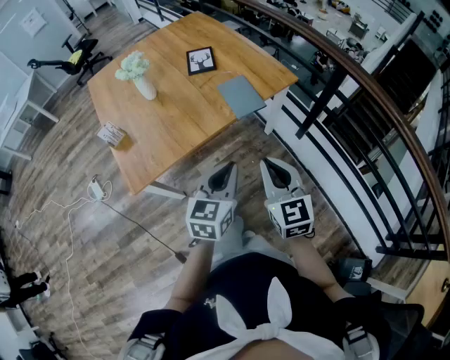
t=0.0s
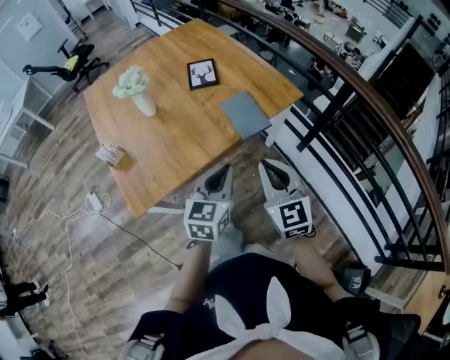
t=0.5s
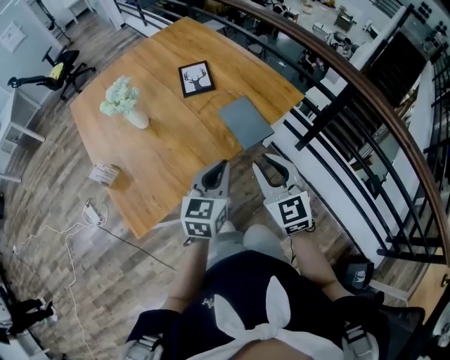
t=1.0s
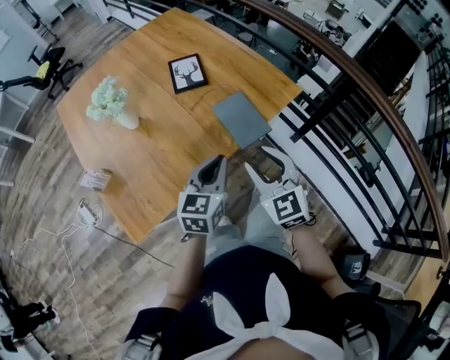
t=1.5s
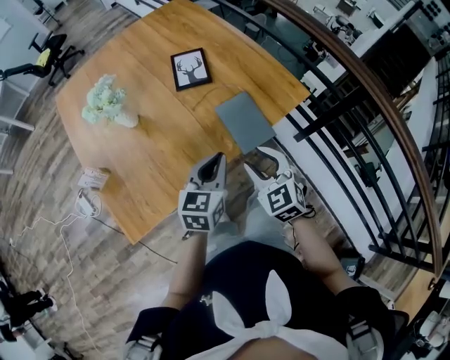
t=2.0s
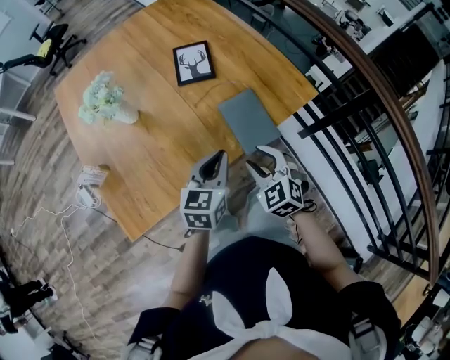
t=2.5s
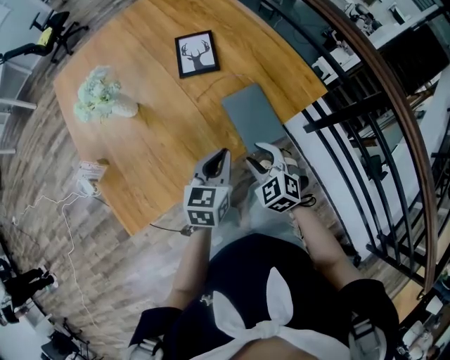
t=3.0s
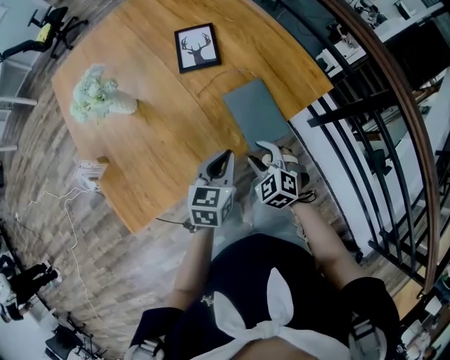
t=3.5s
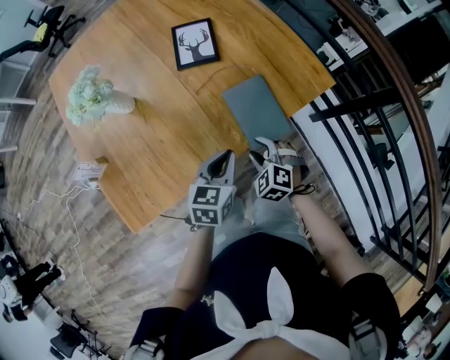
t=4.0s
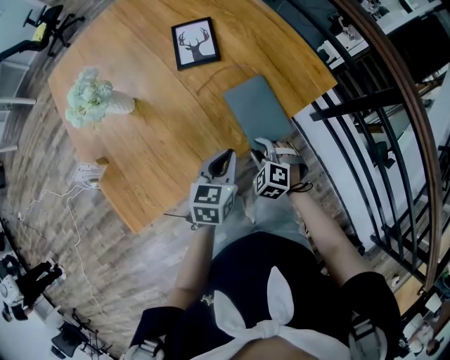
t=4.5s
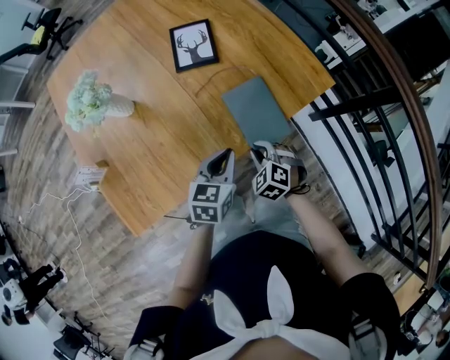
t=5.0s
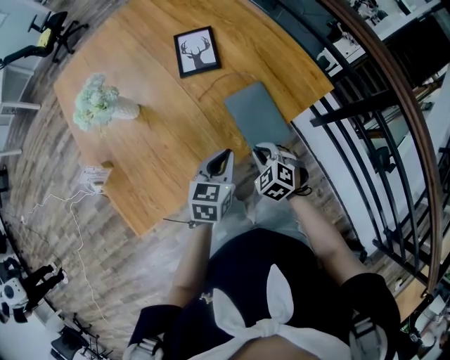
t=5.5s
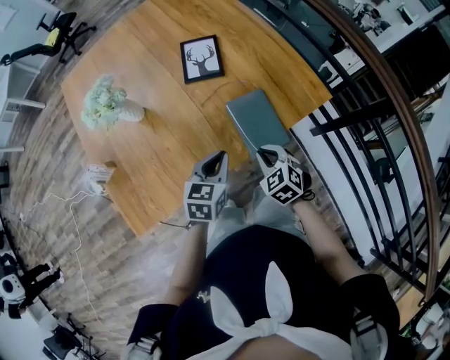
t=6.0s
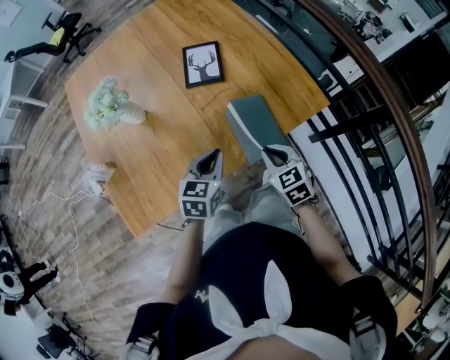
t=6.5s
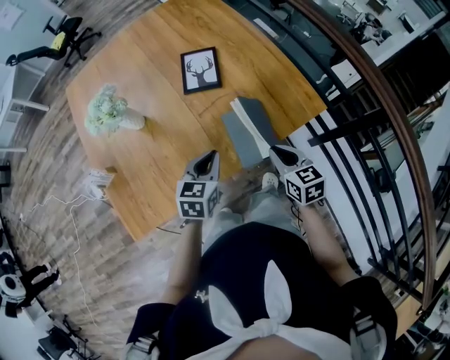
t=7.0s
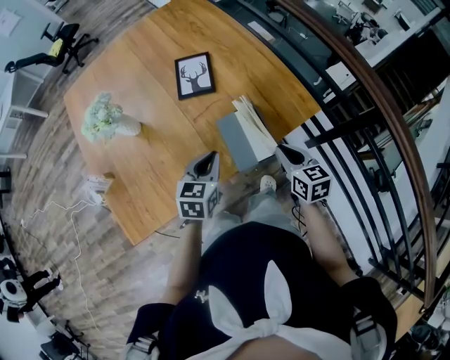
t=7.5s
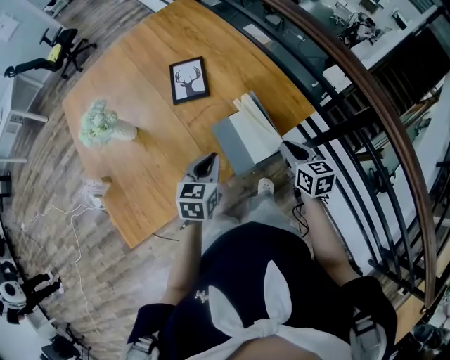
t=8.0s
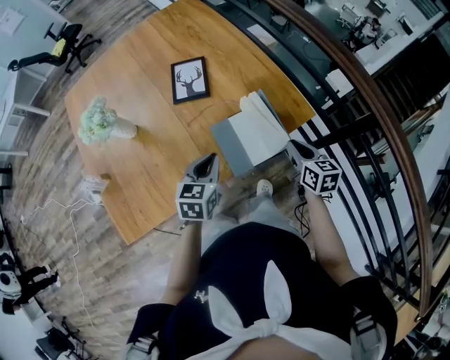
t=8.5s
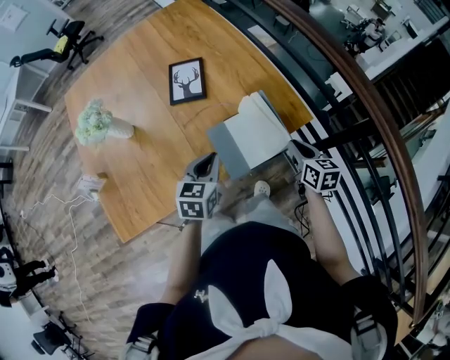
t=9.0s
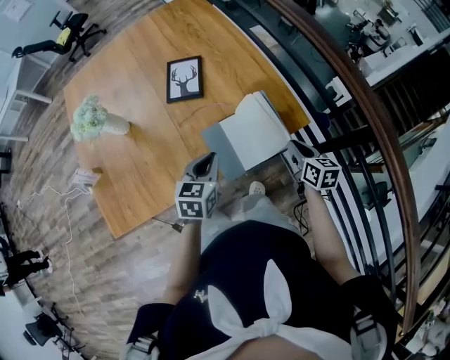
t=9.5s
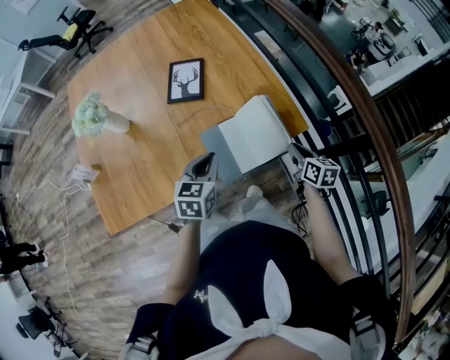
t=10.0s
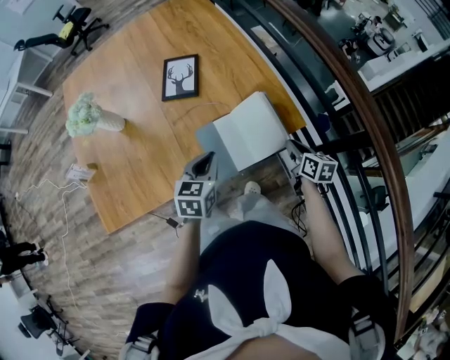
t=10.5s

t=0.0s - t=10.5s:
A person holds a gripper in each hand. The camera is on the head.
t=0.0s - t=2.0s: Both grippers travel together forward, roughly 25 cm. The right gripper turns by roughly 30 degrees, and opens.
t=2.0s - t=4.0s: The left gripper moves downward, some 10 cm; the right gripper shifts about 15 cm downward, and changes its angle by approximately 30 degrees.
t=4.0s - t=6.5s: The right gripper goes roughly 10 cm upward, rotates about 30 degrees, and closes its fingers, while the left gripper ends up approximately 5 cm from where it was.
t=6.5s - t=8.5s: The left gripper moves to the right, approximately 5 cm. The right gripper goes approximately 15 cm to the right, and swivels about 30 degrees.
t=8.5s - t=10.5s: The left gripper heads to the right, covering approximately 5 cm; the right gripper is displaced to the right and downward by about 10 cm.

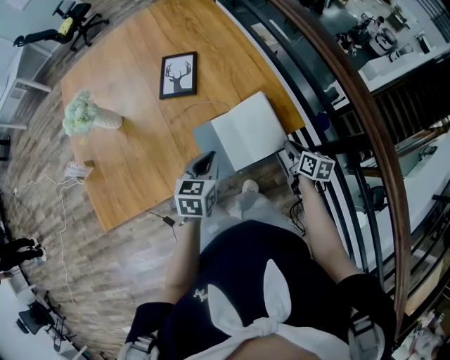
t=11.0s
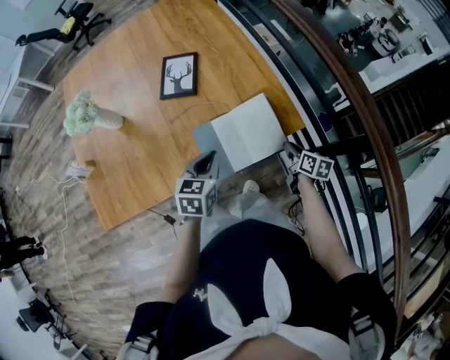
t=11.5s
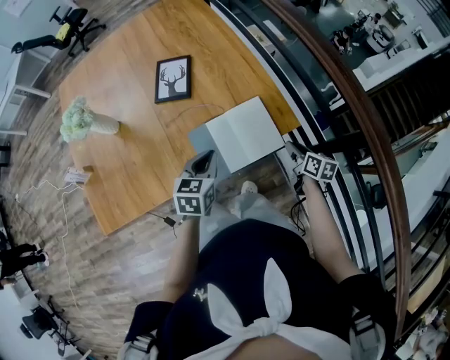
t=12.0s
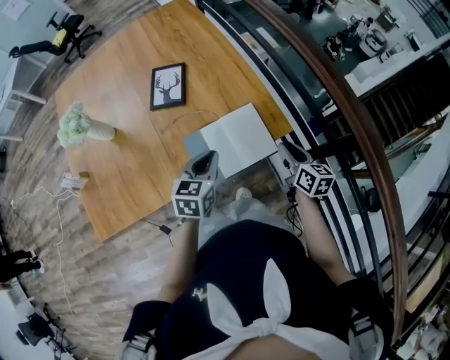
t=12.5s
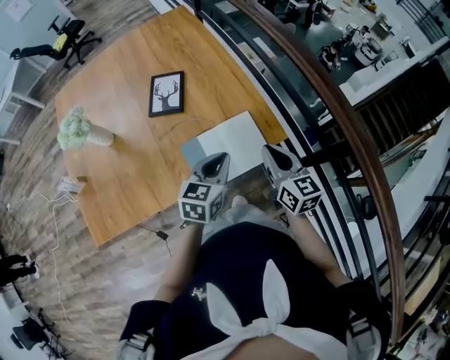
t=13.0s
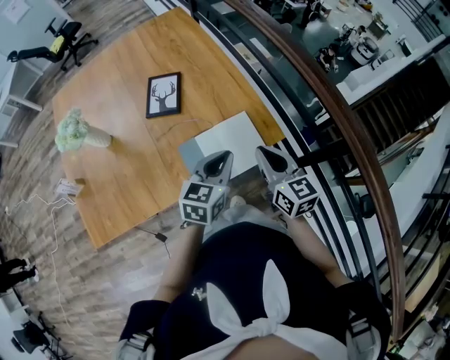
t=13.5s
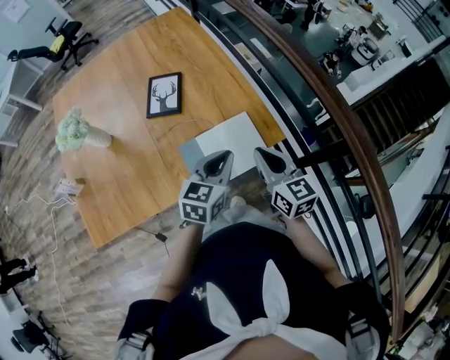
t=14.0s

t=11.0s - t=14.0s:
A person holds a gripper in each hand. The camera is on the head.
t=11.0s - t=12.5s: The left gripper changes place by approximately 5 cm, while the right gripper travels upward by approximately 10 cm.
t=12.5s - t=14.0s: The left gripper goes approximately 10 cm to the right and upward; the right gripper goes about 15 cm upward and to the left, rotates roughly 20 degrees, and closes its fingers.

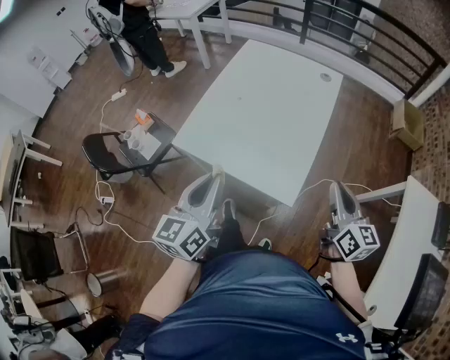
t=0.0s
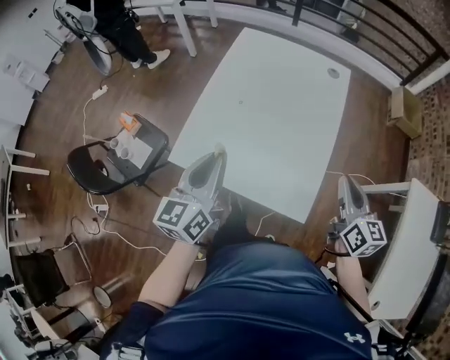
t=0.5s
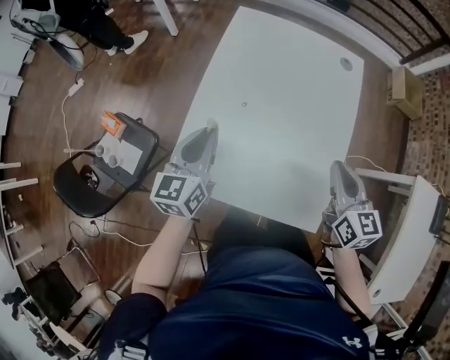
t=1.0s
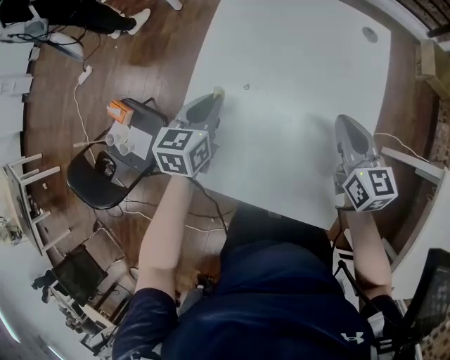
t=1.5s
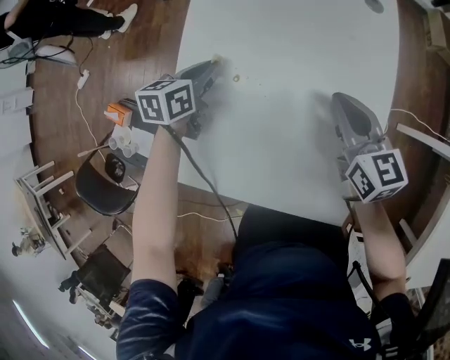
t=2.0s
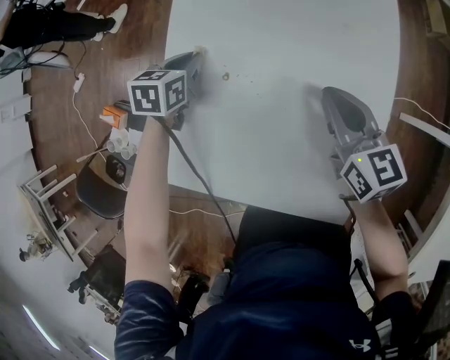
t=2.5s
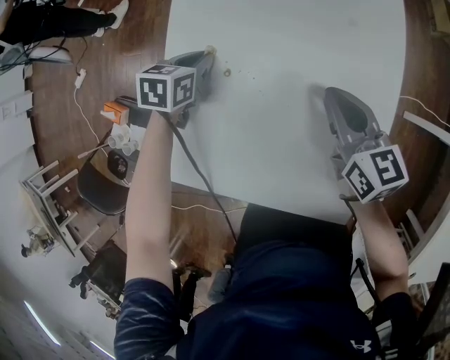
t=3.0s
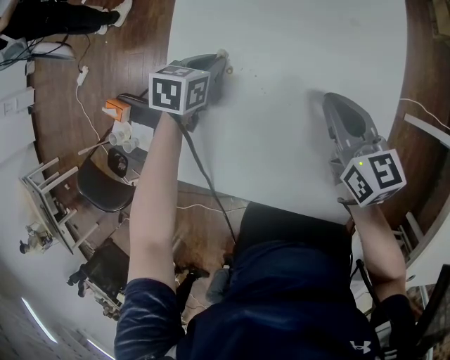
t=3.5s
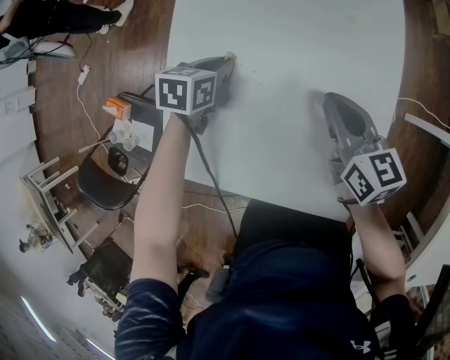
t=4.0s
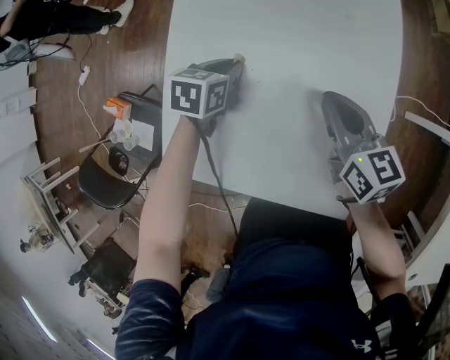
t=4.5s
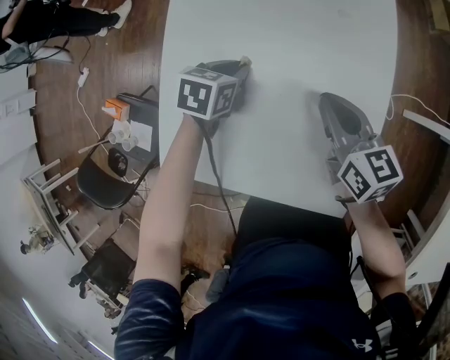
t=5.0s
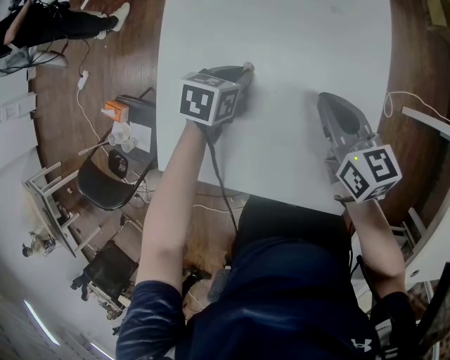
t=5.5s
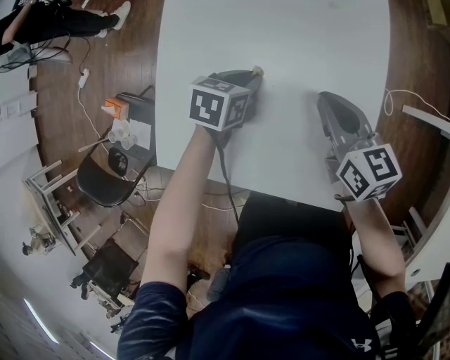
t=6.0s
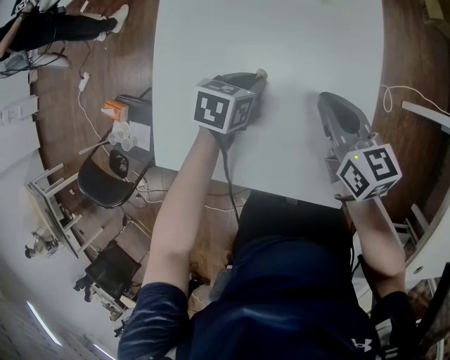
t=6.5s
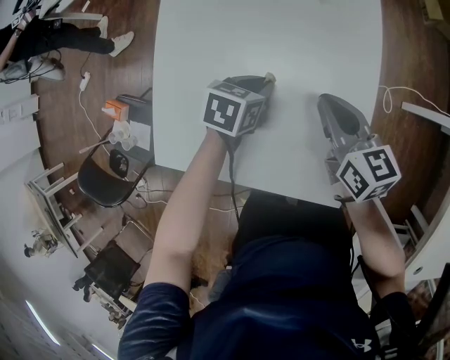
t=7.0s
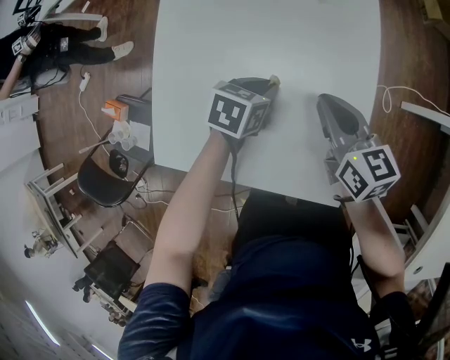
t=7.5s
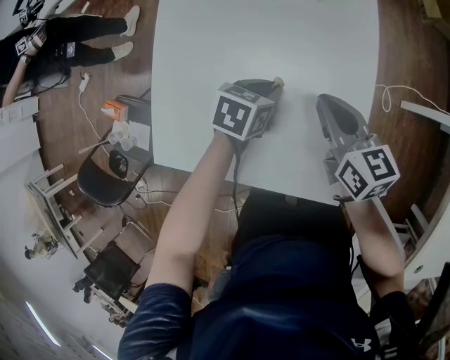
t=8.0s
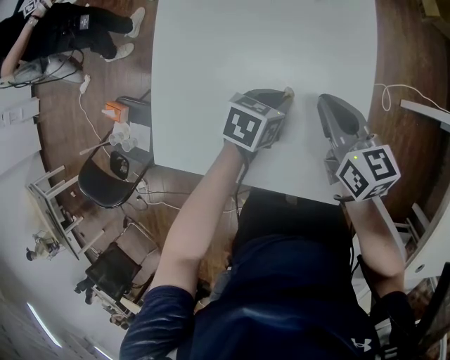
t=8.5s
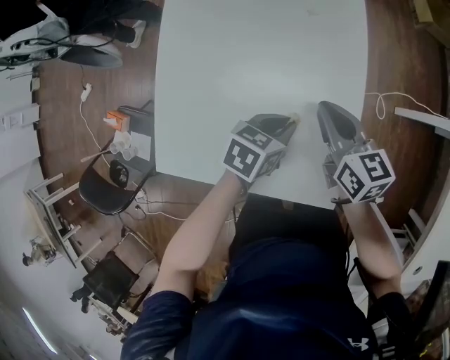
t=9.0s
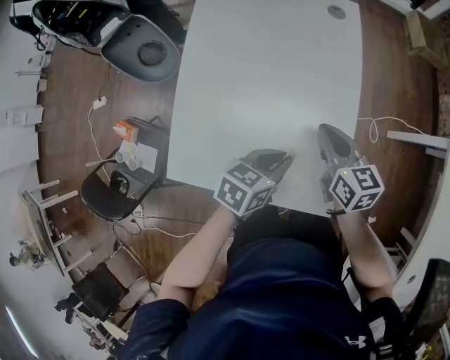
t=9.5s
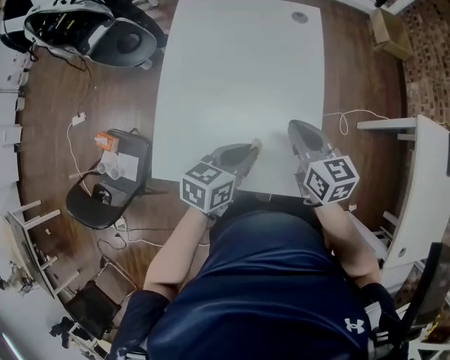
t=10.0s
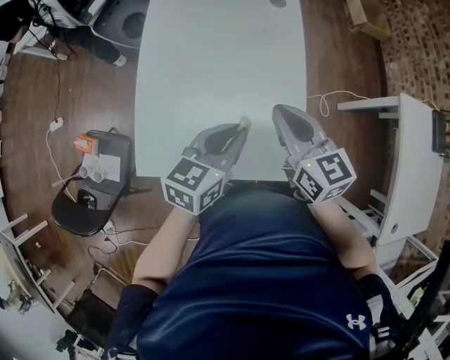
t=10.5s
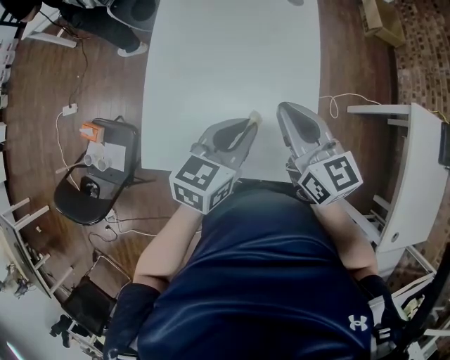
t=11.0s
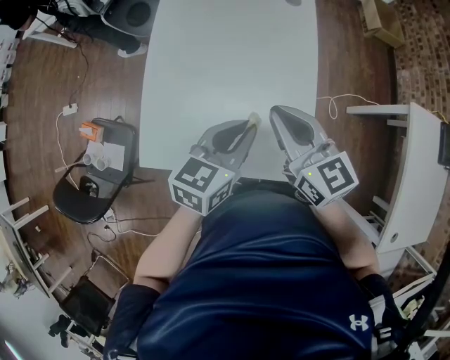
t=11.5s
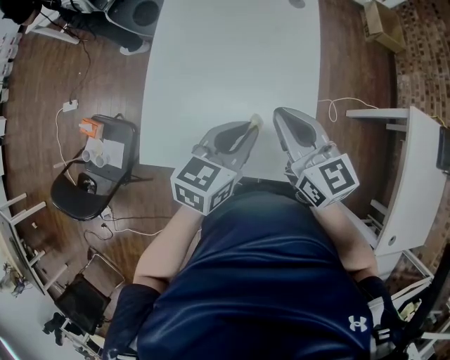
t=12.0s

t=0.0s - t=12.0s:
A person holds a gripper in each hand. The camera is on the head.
t=0.0s - t=2.0s: The left gripper travels forward and downward by roughly 50 cm, and points its fingers roughly 30 degrees further downward; the right gripper is displaced forward, downward and to the left by about 40 cm.
t=2.0s - t=4.0s: The left gripper moves some 5 cm.
t=4.0s - t=6.0s: The left gripper moves to the right and backward, about 10 cm.
t=6.0s - t=8.0s: The left gripper moves to the right, about 5 cm.
t=8.0s - t=10.0s: The right gripper shifts roughly 10 cm upward; the left gripper heads upward and backward, covering approximately 20 cm, and swivels roughly 20 degrees.
t=10.0s - t=12.0s: The left gripper ends up approximately 5 cm from where it was; the right gripper goes about 5 cm upward.

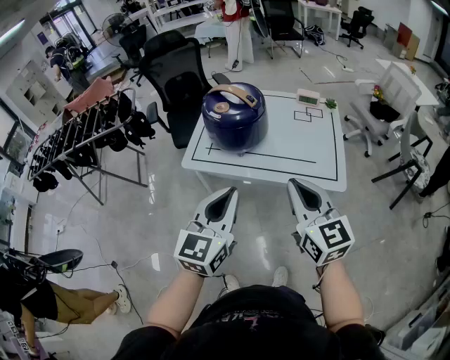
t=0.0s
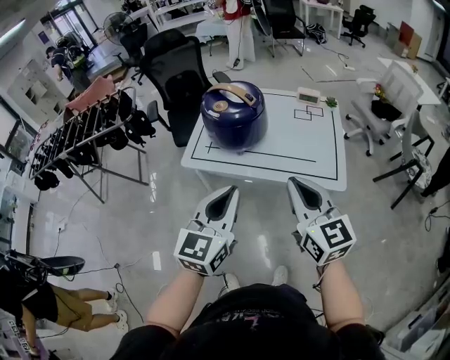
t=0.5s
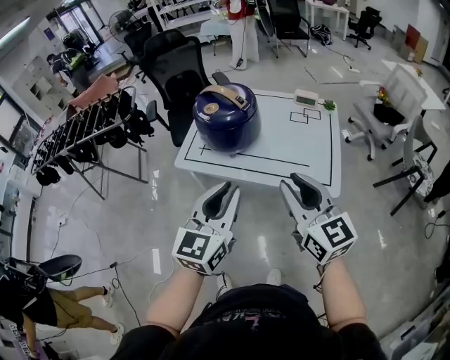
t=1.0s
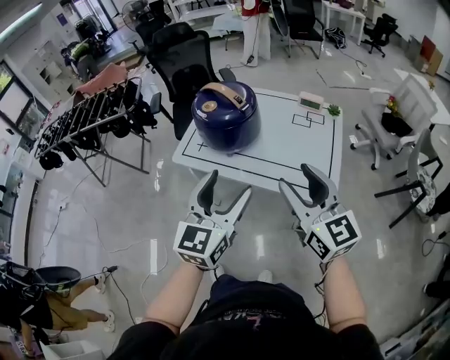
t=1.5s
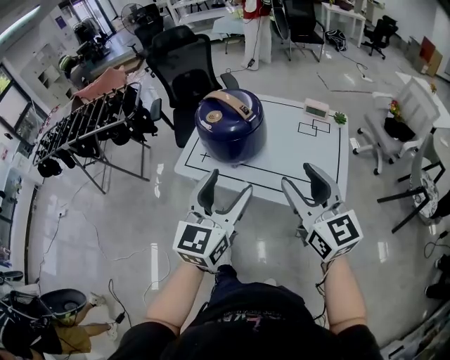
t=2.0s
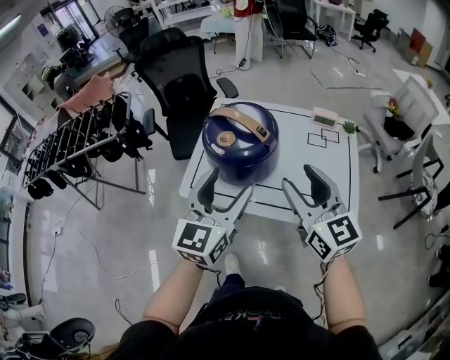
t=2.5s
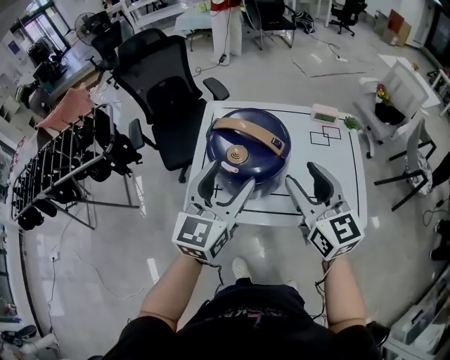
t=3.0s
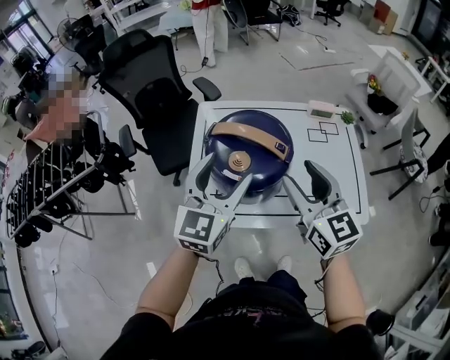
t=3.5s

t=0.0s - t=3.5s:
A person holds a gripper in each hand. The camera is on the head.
t=0.0s - t=2.0s: The grippers both shift forward and to the right by approximately 10 cm. The left gripper opens its fingers, while the right gripper opens its fingers.
t=2.0s - t=3.5s: The two grippers go some 25 cm forward and to the left.
